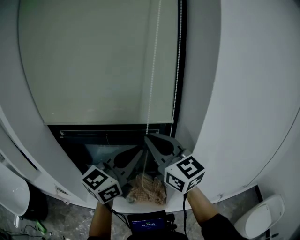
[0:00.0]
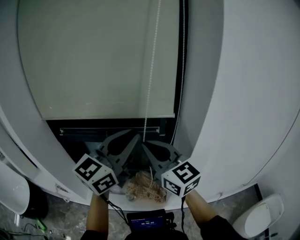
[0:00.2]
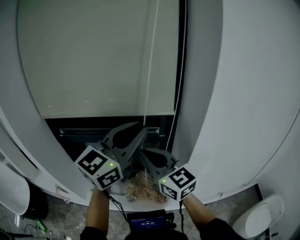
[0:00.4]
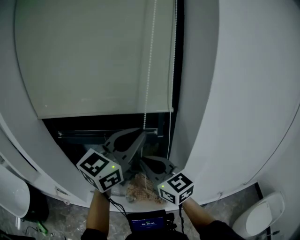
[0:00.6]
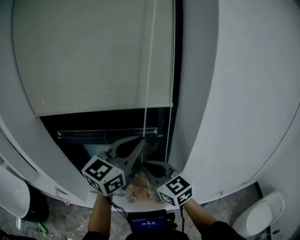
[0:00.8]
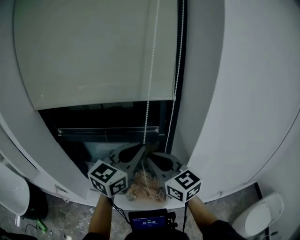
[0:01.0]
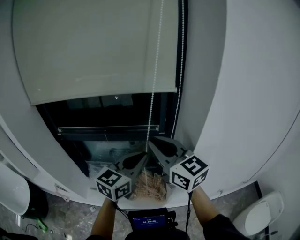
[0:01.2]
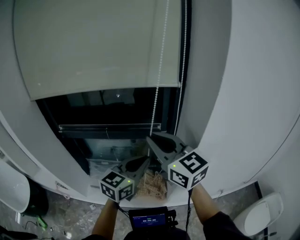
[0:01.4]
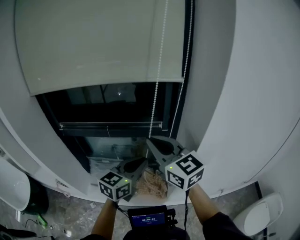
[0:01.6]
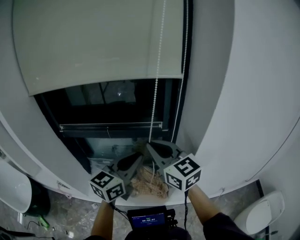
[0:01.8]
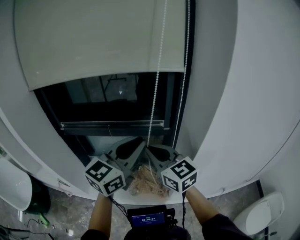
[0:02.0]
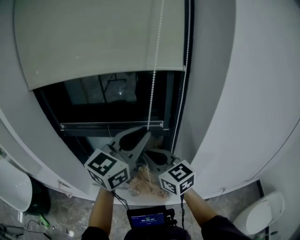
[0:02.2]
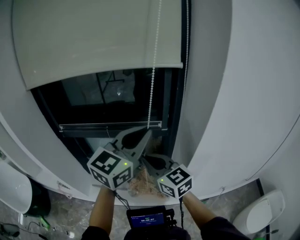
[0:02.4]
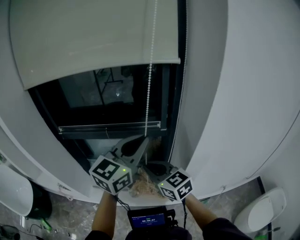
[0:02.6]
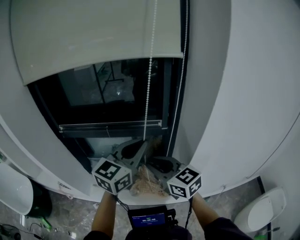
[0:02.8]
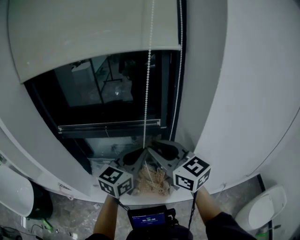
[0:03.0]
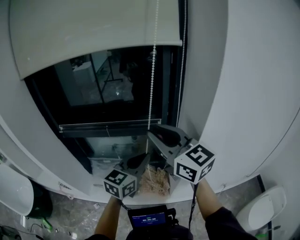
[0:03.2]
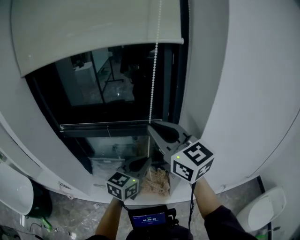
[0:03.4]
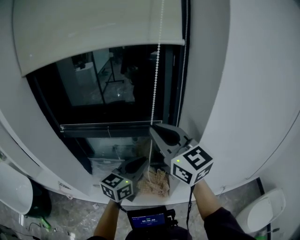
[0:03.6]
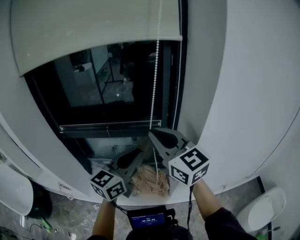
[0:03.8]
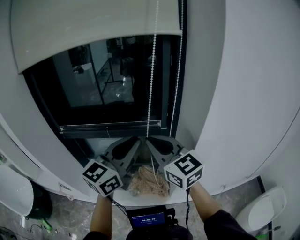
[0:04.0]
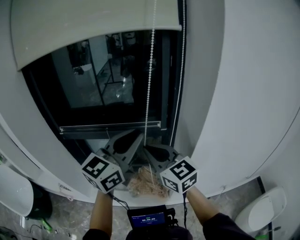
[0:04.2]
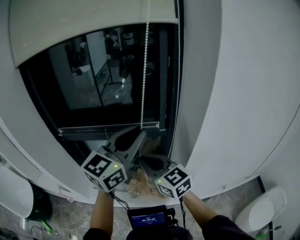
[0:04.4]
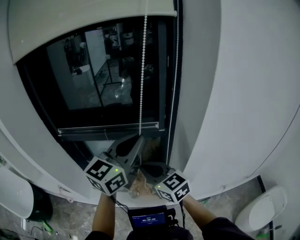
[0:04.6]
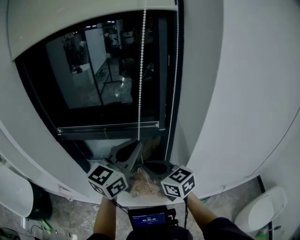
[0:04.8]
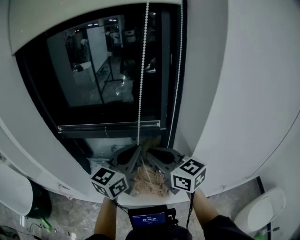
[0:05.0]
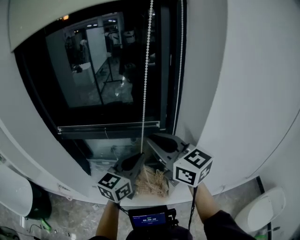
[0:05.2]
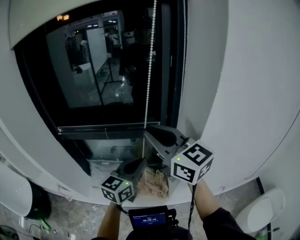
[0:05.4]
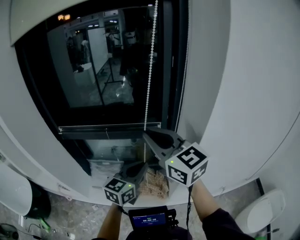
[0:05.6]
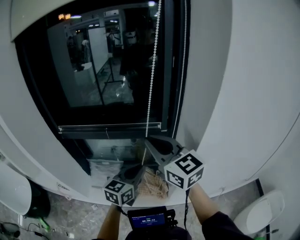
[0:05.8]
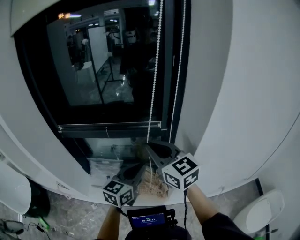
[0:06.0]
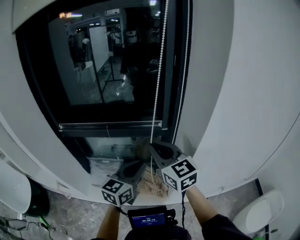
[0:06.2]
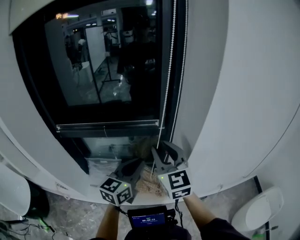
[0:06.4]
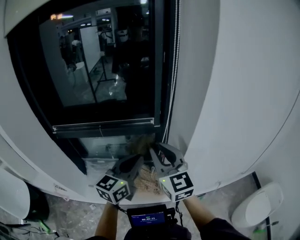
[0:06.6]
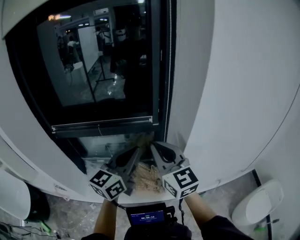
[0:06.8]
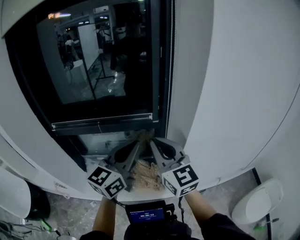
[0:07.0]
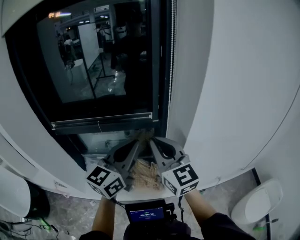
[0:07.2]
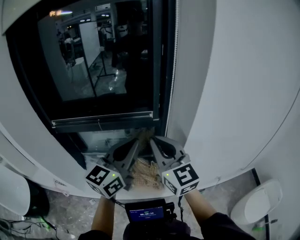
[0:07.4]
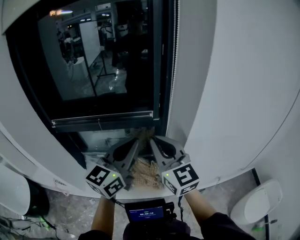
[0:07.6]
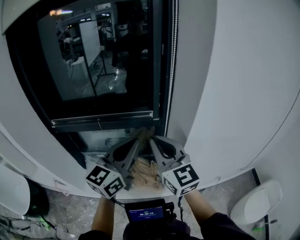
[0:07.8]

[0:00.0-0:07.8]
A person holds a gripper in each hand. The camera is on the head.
0.0 to 1.6 s: The right gripper goes roughly 5 cm downward. Meanwhile the left gripper moves downward, about 15 cm.
1.6 to 3.2 s: The left gripper goes upward and returns, some 15 cm each way; the right gripper reaches approximately 15 cm downward, then returns.
3.2 to 4.6 s: The right gripper travels downward by approximately 15 cm. The left gripper moves upward, some 15 cm.
4.6 to 6.2 s: The right gripper shifts some 5 cm upward; the left gripper travels downward by roughly 15 cm.
6.2 to 7.8 s: The left gripper shifts about 10 cm upward. The right gripper shifts by roughly 5 cm.

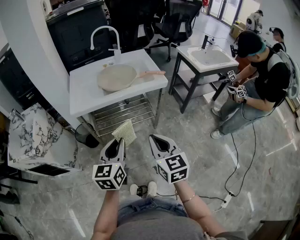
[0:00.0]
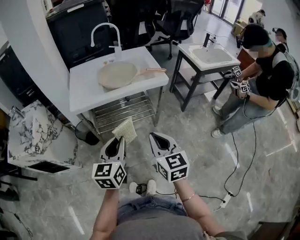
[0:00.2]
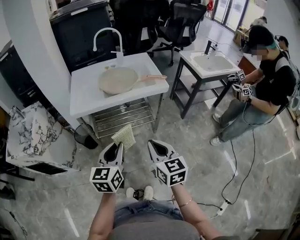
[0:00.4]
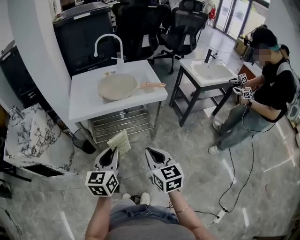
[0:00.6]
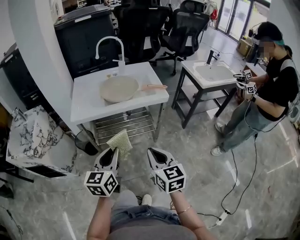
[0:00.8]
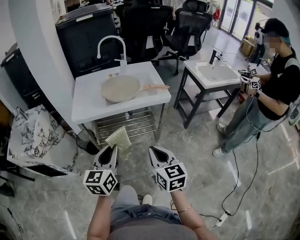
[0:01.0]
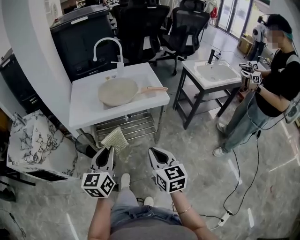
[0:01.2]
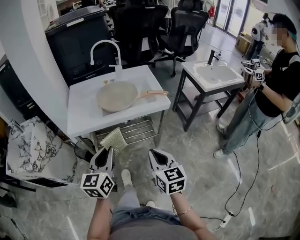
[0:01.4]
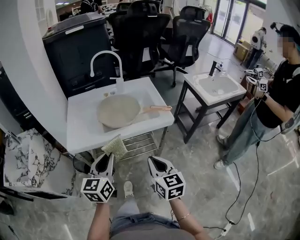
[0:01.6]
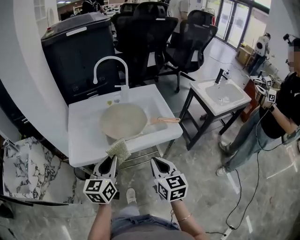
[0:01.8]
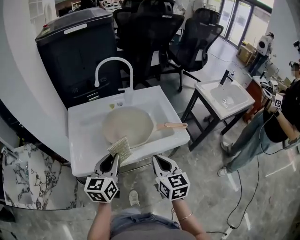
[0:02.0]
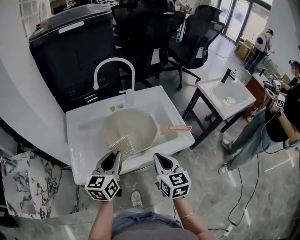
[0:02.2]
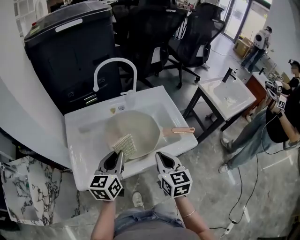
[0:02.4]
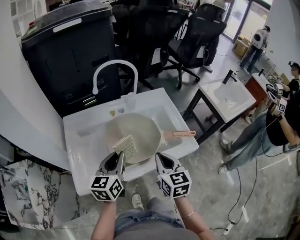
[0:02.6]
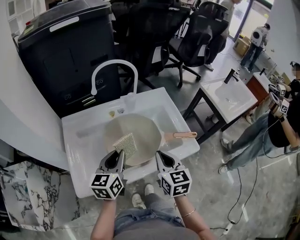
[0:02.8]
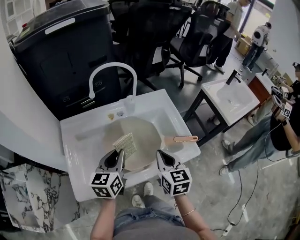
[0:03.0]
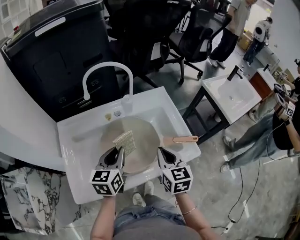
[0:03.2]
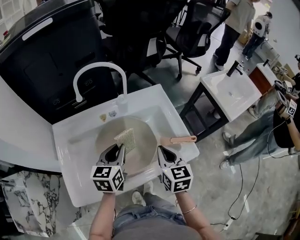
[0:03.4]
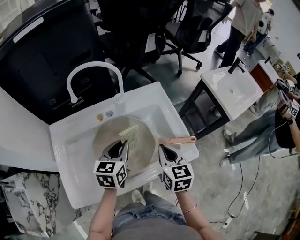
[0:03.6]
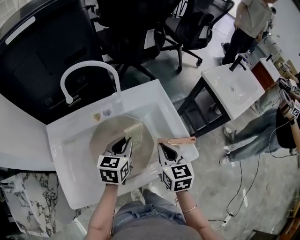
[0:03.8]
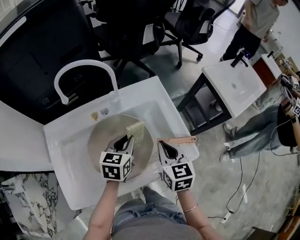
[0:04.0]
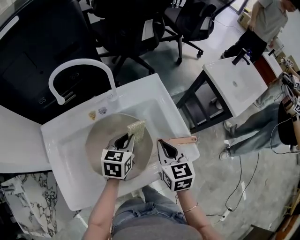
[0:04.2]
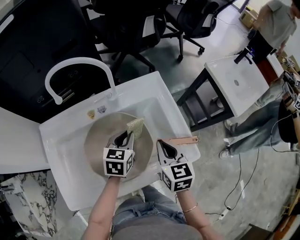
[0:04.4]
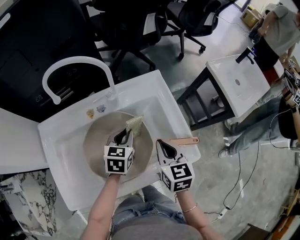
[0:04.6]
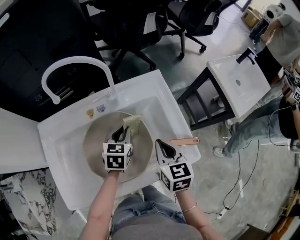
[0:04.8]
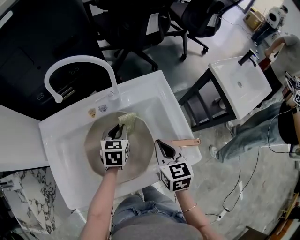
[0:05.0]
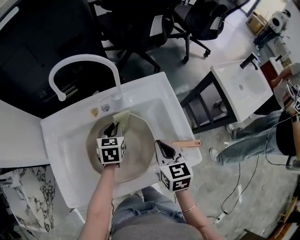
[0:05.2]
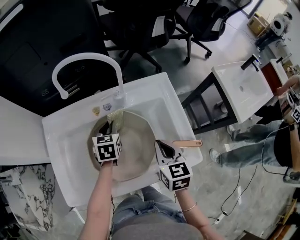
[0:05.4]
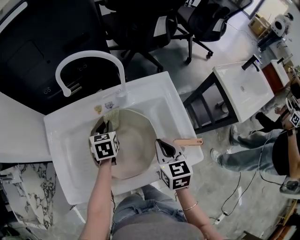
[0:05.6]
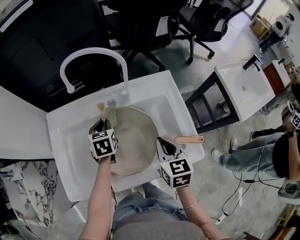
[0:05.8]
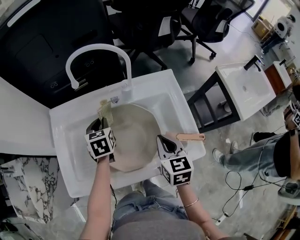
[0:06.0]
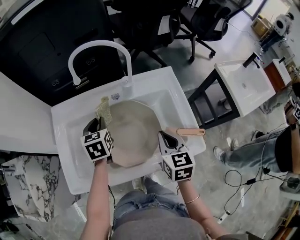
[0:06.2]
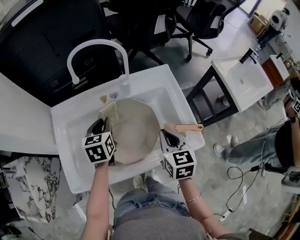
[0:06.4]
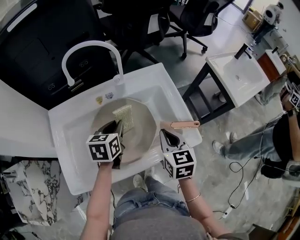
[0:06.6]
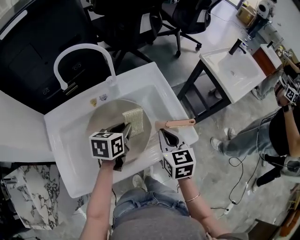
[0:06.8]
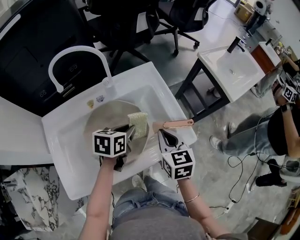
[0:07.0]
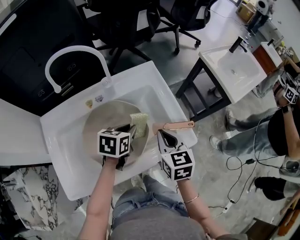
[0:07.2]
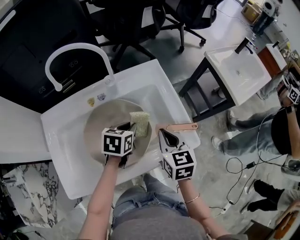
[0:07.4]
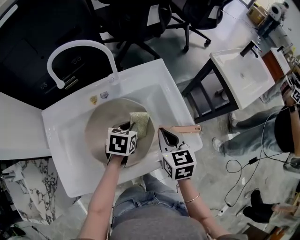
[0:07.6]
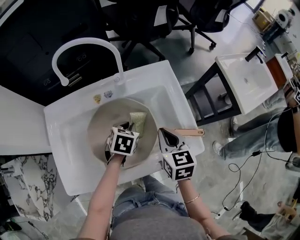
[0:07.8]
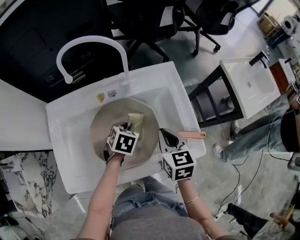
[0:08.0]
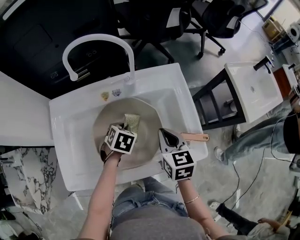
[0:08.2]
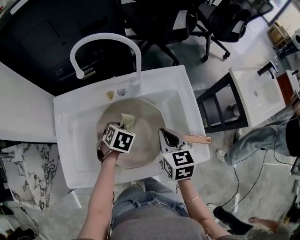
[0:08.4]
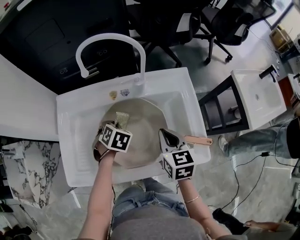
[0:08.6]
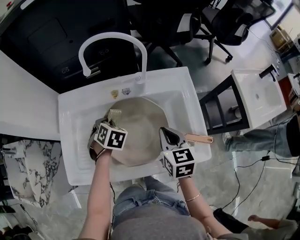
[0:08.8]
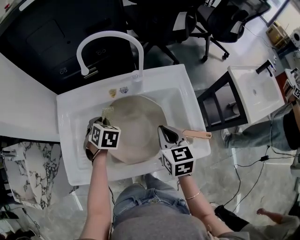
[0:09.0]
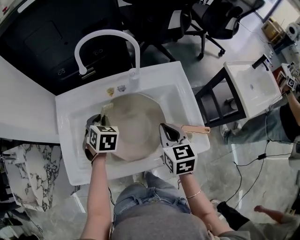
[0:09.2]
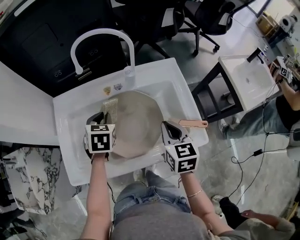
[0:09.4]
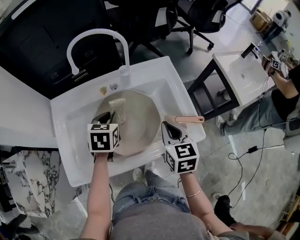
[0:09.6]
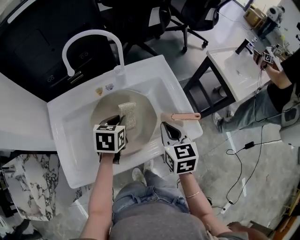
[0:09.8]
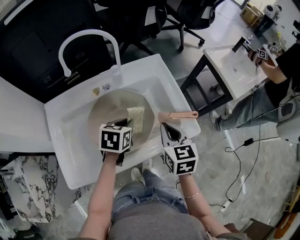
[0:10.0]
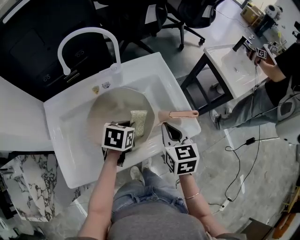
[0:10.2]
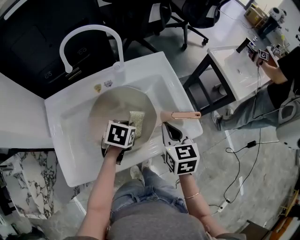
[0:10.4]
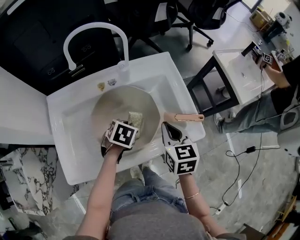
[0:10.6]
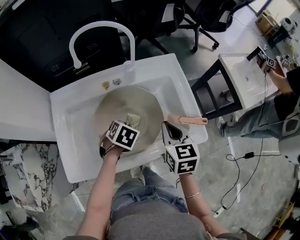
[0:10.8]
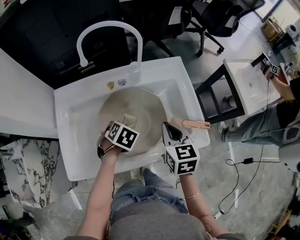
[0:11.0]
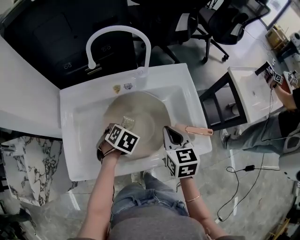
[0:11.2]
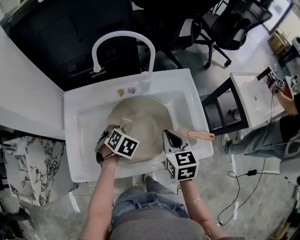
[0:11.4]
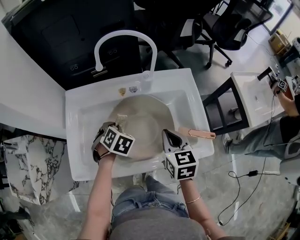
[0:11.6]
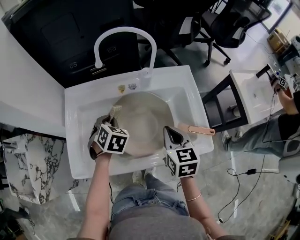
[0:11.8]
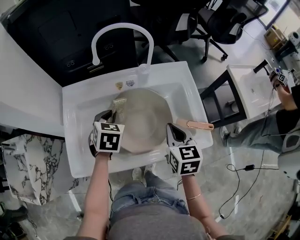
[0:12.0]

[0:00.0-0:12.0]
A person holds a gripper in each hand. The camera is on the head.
0.0 to 1.6 s: The two grippers go about 15 cm forward.
1.6 to 3.0 s: The grippers both shift forward by some 30 cm.
3.0 to 4.4 s: The right gripper travels forward and to the right by about 10 cm; the left gripper goes about 20 cm forward, downward and to the right, and swivels roughly 20 degrees.
4.4 to 6.0 s: The left gripper goes about 15 cm to the left, and turns by about 30 degrees.
6.0 to 7.6 s: The left gripper changes place by approximately 20 cm, and swivels roughly 30 degrees.
7.6 to 9.0 s: The left gripper moves roughly 20 cm, and turns by about 40 degrees, while the right gripper shifts by about 5 cm.
9.0 to 10.4 s: The left gripper shifts by some 20 cm, and changes its angle by about 40 degrees, while the right gripper shifts by some 10 cm.
10.4 to 12.0 s: The left gripper changes place by some 15 cm, and changes its angle by some 30 degrees, while the right gripper ends up roughly 5 cm from where it was.

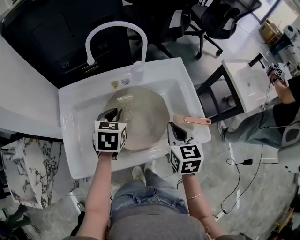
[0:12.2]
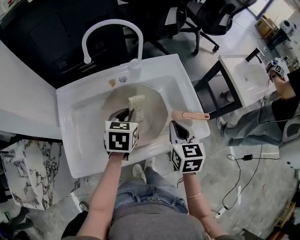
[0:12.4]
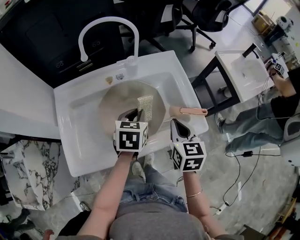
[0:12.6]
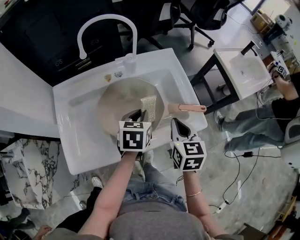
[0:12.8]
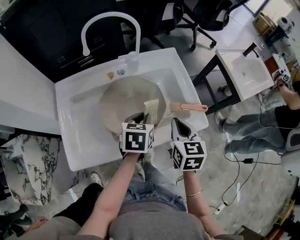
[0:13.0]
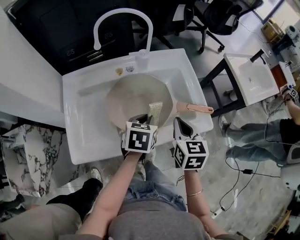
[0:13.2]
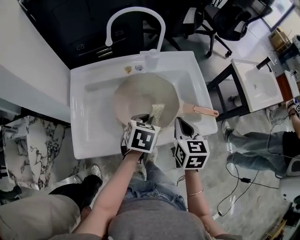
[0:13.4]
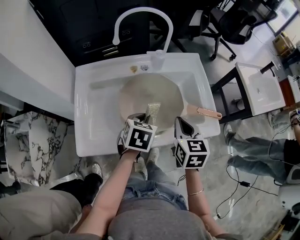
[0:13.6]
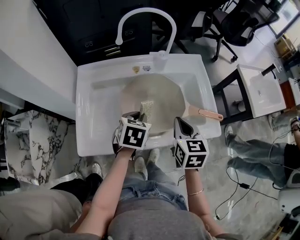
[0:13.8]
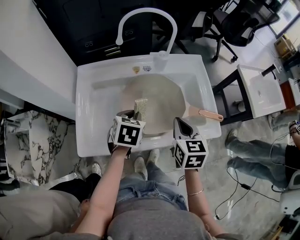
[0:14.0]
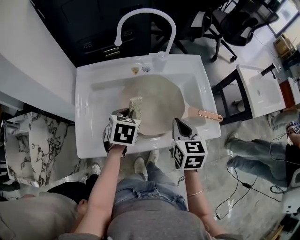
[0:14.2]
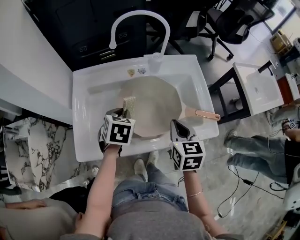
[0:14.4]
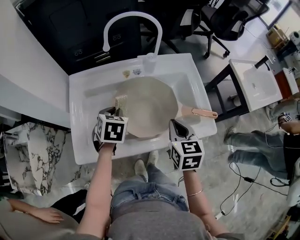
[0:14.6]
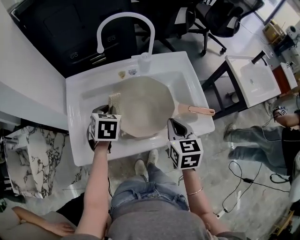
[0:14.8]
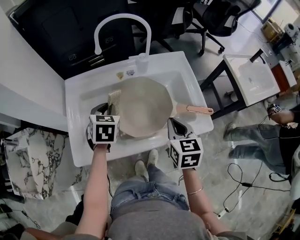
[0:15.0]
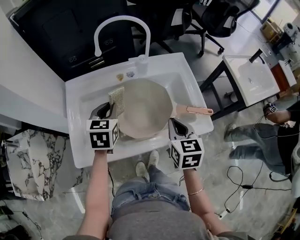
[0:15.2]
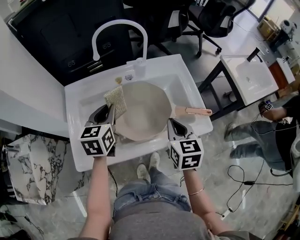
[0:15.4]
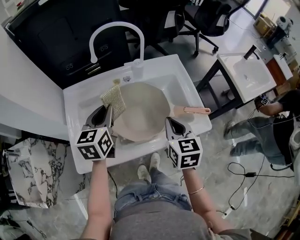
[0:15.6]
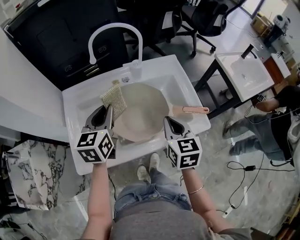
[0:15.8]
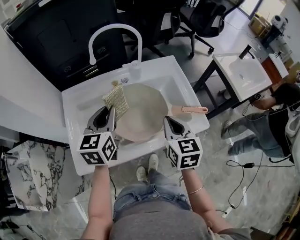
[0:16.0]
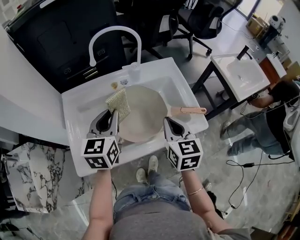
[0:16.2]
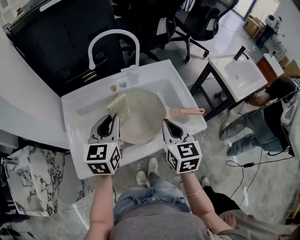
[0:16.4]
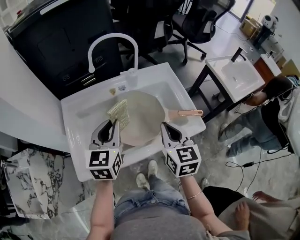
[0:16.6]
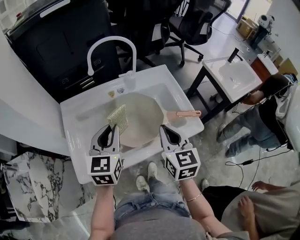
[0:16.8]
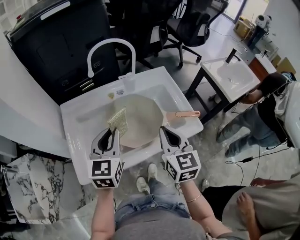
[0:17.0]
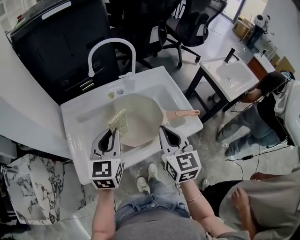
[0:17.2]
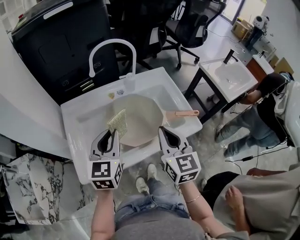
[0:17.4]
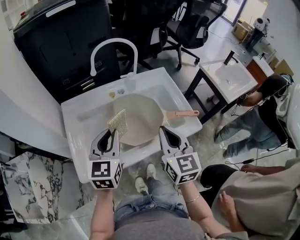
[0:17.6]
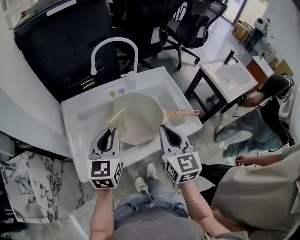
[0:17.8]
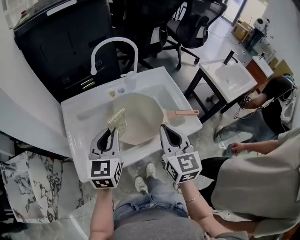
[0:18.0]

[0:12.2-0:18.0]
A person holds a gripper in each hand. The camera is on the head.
12.2 to 13.6 s: The left gripper shifts approximately 10 cm backward and to the right.
13.6 to 15.0 s: The left gripper heads to the left and forward, covering about 10 cm.
15.0 to 16.6 s: The left gripper is displaced upward and backward by approximately 10 cm, and turns by some 30 degrees. The right gripper moves upward, approximately 5 cm.
16.6 to 18.0 s: The right gripper shifts by about 5 cm.
